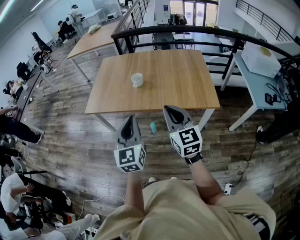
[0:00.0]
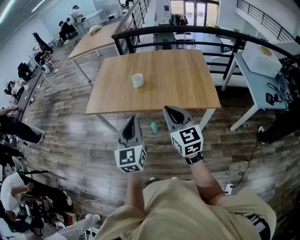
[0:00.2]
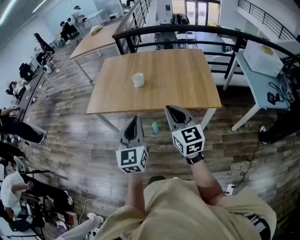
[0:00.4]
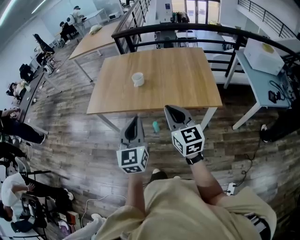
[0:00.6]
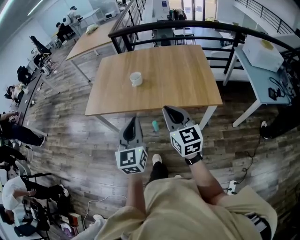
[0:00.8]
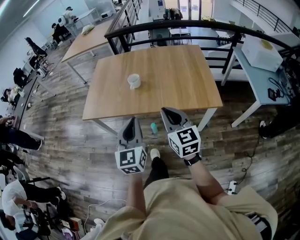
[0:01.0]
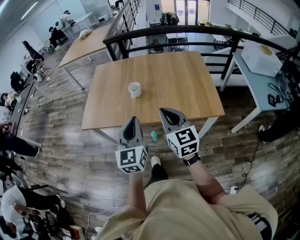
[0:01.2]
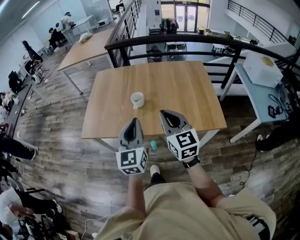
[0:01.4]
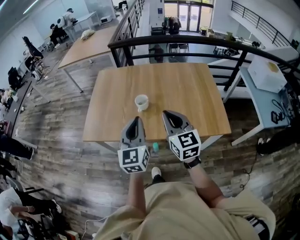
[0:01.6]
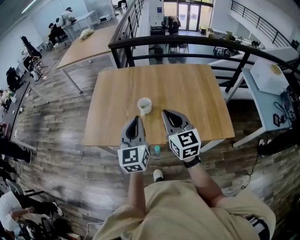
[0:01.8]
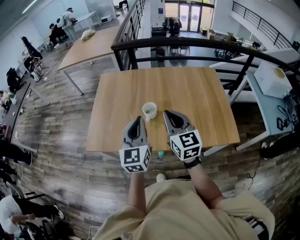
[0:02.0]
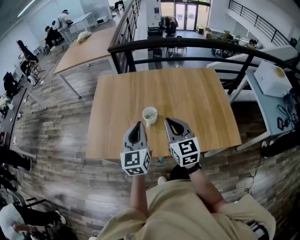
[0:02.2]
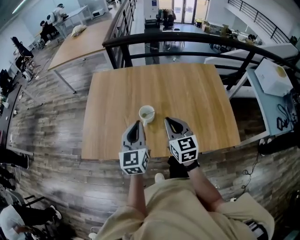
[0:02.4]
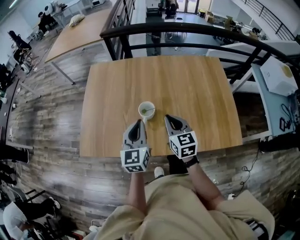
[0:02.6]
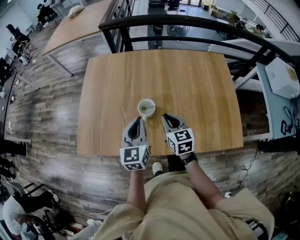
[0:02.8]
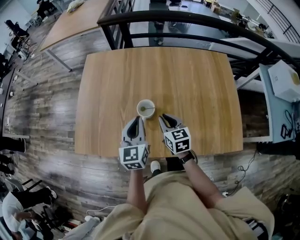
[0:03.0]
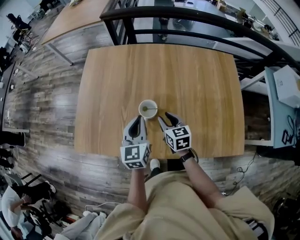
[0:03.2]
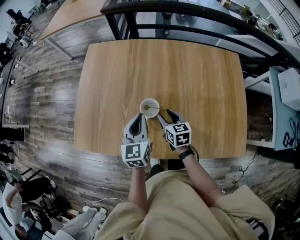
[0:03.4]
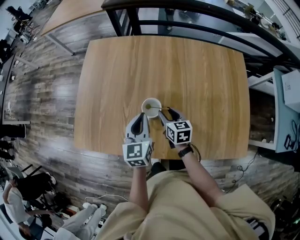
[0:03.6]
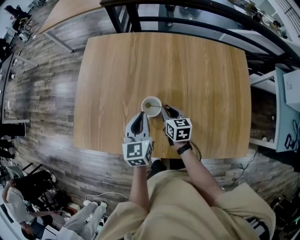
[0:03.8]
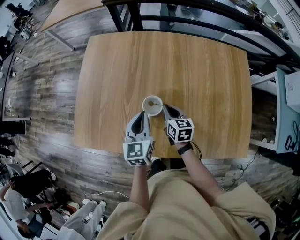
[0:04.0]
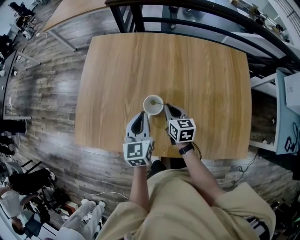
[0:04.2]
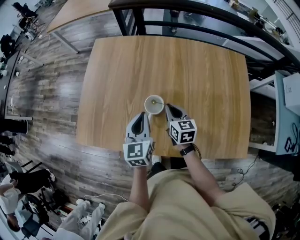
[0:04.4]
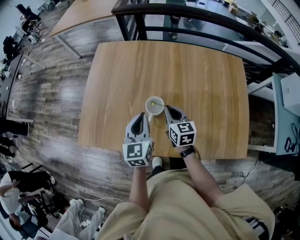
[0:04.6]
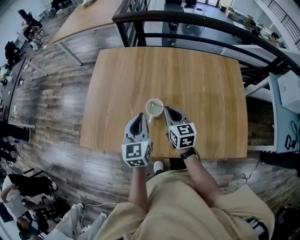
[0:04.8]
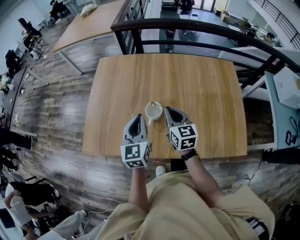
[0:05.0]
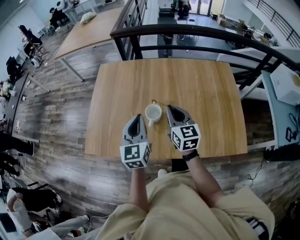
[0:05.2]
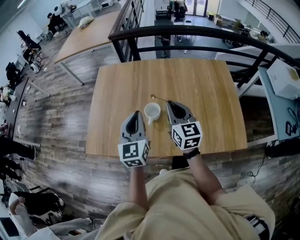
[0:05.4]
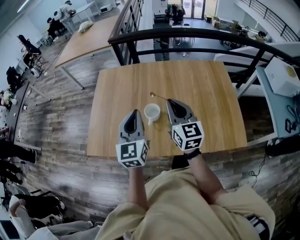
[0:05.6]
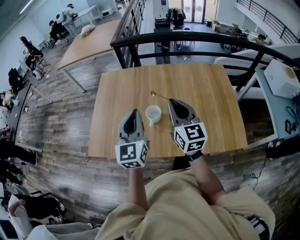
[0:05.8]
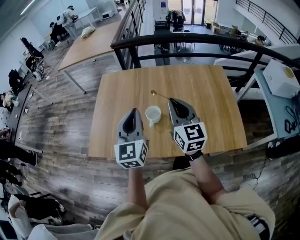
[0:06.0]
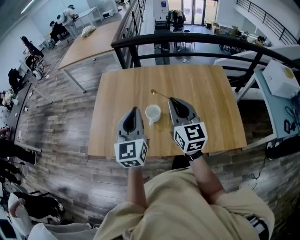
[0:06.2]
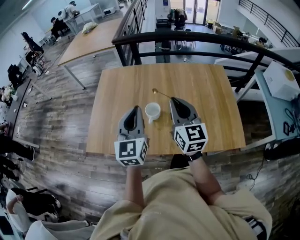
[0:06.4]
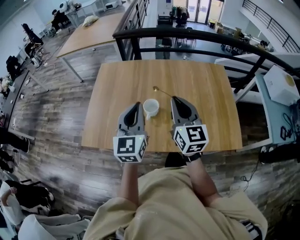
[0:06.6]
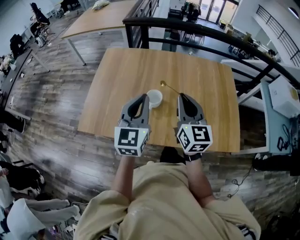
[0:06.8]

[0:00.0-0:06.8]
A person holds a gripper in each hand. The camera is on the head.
0:00.0 to 0:01.4: The grippers both shift forward by some 20 cm.
0:01.4 to 0:02.8: Both grippers move forward and downward, approximately 35 cm. The right gripper rotates some 20 degrees.
0:02.8 to 0:04.0: The two grippers go approximately 15 cm downward and forward. The right gripper opens, then closes once more.
0:04.0 to 0:05.4: The grippers both shift upward and backward by about 25 cm. The right gripper changes its angle by roughly 30 degrees.
0:05.4 to 0:06.8: The right gripper shifts approximately 5 cm upward and backward. Meanwhile the left gripper shifts by approximately 5 cm.

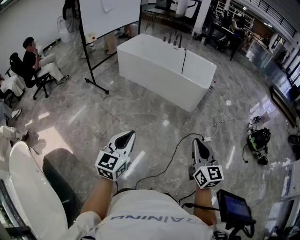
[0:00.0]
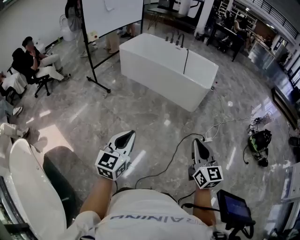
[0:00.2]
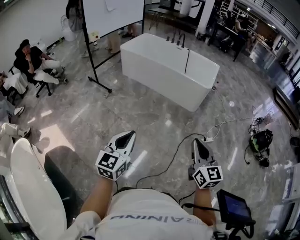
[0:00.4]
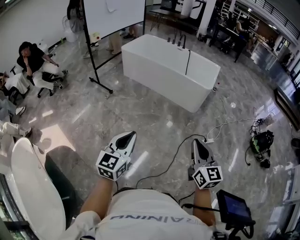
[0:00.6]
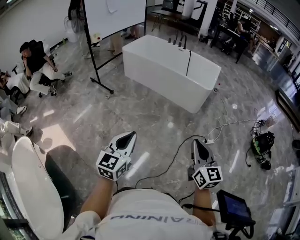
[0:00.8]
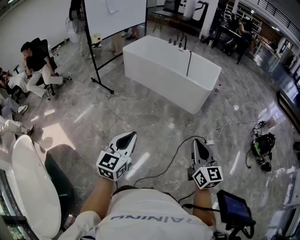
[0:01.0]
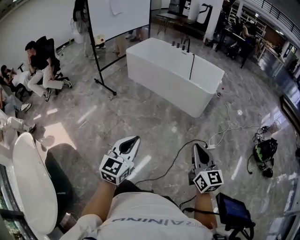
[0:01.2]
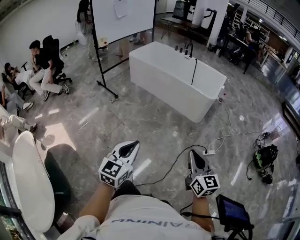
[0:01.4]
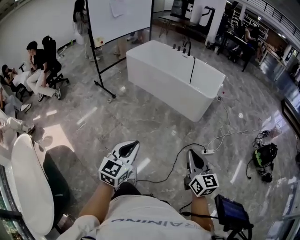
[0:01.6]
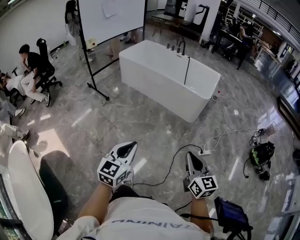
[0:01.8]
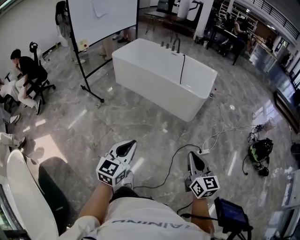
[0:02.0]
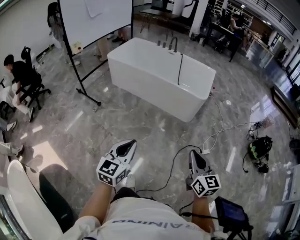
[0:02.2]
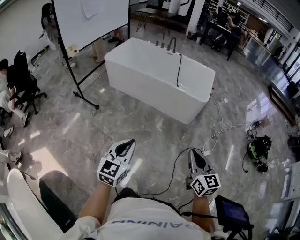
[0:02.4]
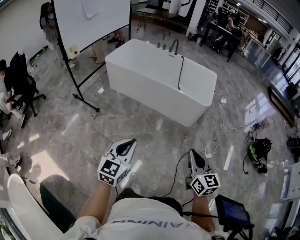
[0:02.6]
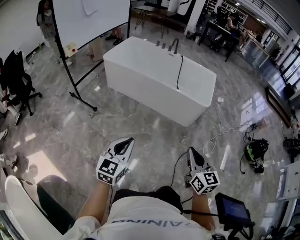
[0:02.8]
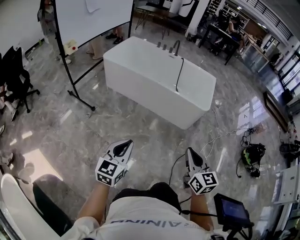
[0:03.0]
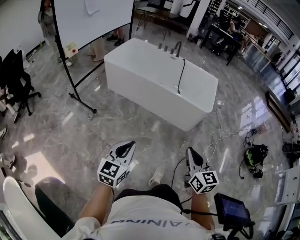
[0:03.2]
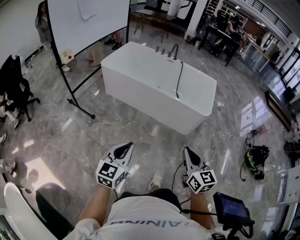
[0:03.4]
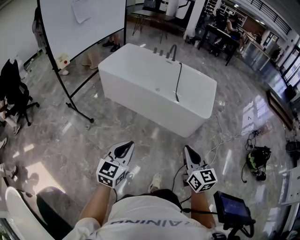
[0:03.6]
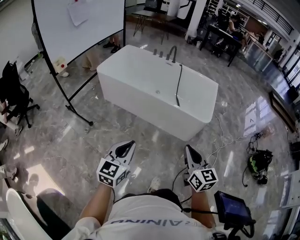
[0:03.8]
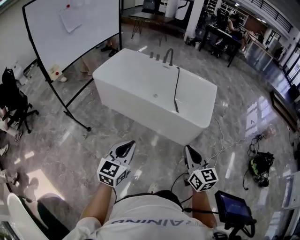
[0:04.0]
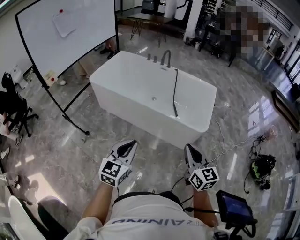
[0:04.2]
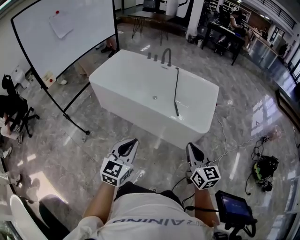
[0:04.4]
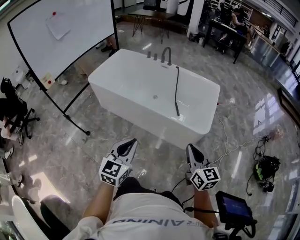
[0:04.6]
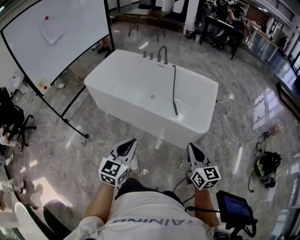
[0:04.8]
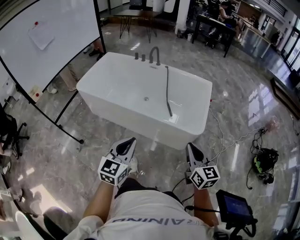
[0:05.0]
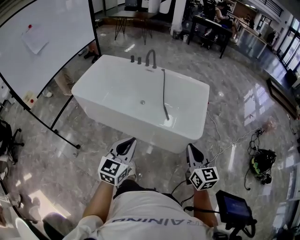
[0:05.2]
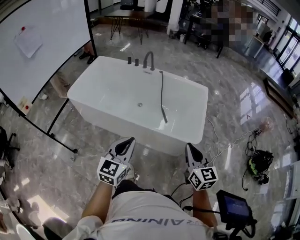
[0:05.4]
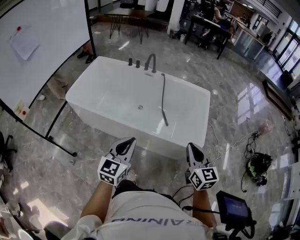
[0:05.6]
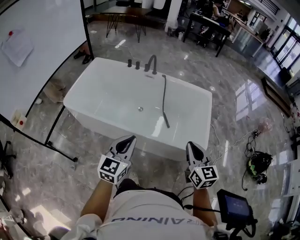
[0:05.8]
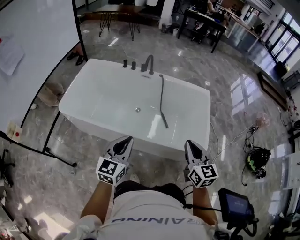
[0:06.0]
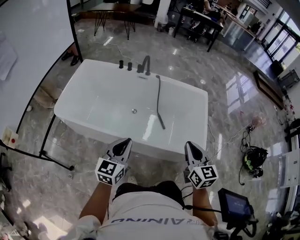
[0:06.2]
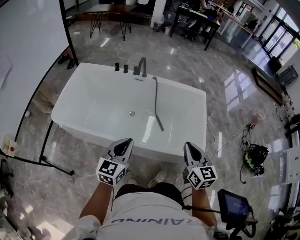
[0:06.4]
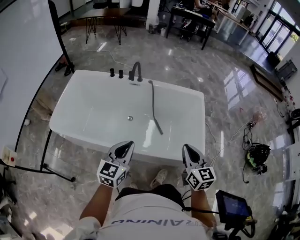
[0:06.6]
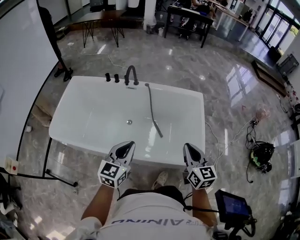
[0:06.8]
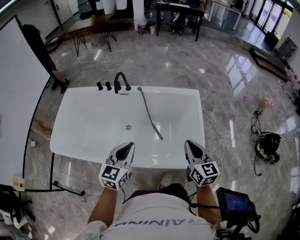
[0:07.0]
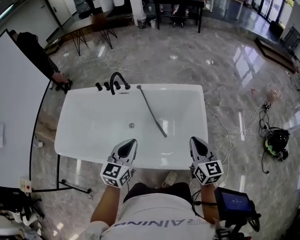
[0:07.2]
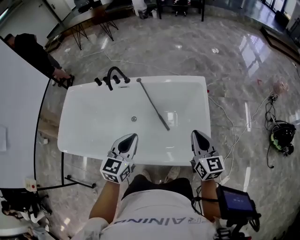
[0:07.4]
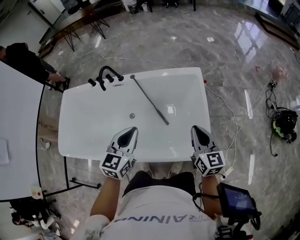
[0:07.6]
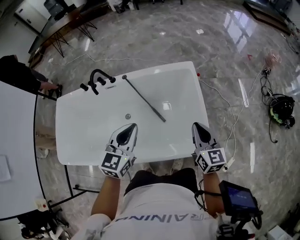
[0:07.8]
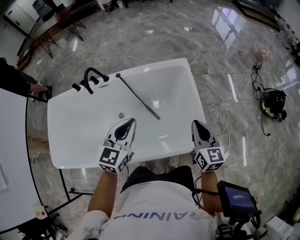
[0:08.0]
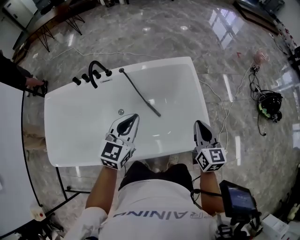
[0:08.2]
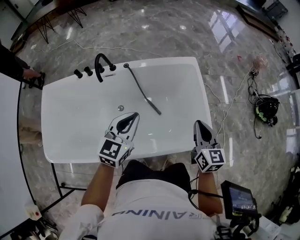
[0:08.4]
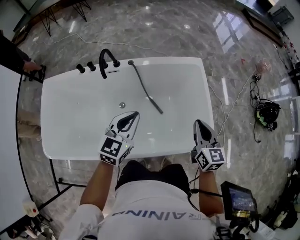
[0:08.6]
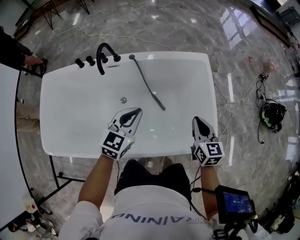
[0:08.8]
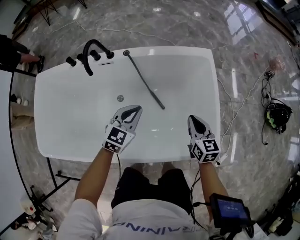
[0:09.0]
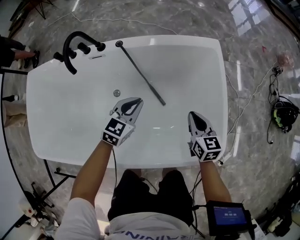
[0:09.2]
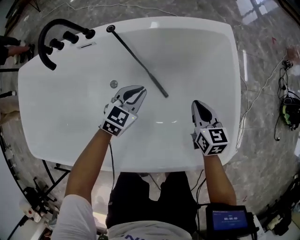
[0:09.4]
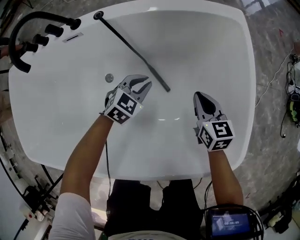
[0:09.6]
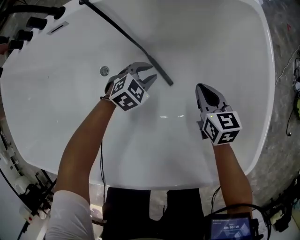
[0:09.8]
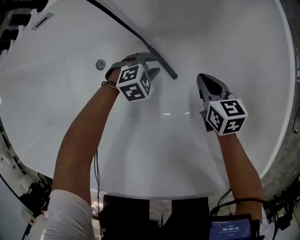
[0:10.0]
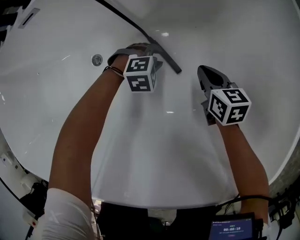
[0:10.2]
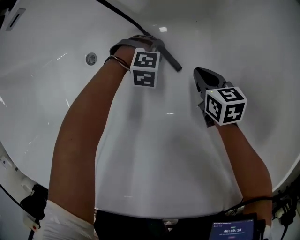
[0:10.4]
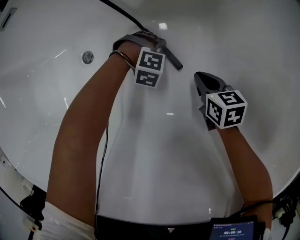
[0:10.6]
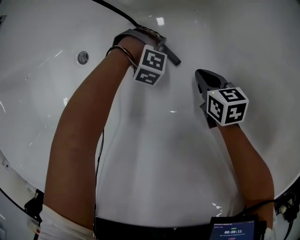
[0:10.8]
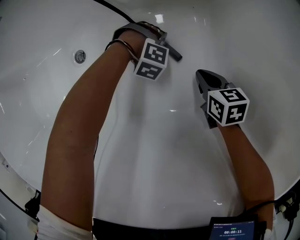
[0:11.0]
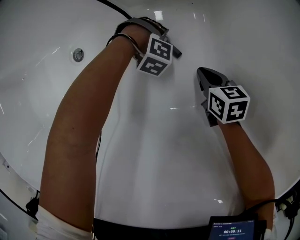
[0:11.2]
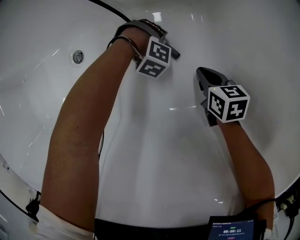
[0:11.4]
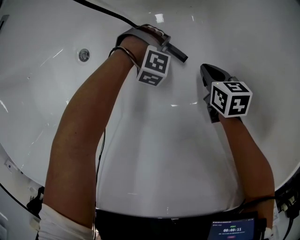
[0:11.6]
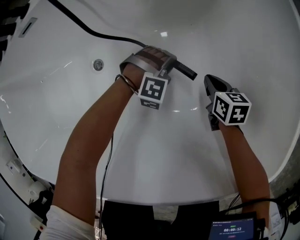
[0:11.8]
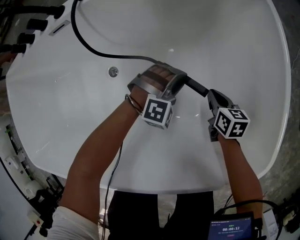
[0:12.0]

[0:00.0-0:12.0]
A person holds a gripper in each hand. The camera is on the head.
0:00.0 to 0:01.6: The two grippers go some 10 cm to the right.
0:01.6 to 0:03.0: The grippers both shift forward and to the left by about 40 cm.
0:03.0 to 0:04.4: The grippers both shift forward and to the right by roughly 40 cm.
0:04.4 to 0:06.0: Both grippers travel together forward, about 40 cm.
0:06.0 to 0:07.6: The grippers both shift forward and to the right by about 40 cm.
0:07.6 to 0:09.0: The right gripper moves downward and to the left, some 25 cm. The left gripper is displaced downward, to the left and forward by roughly 30 cm.
0:09.0 to 0:10.4: The two grippers go roughly 60 cm downward. The left gripper tips its fingers downward by roughly 40 degrees, and opens its fingers; the right gripper swivels approximately 20 degrees.
0:10.4 to 0:12.0: The left gripper moves up and down over some 25 cm, changing direction 3 times, and rotates some 30 degrees, while the right gripper moves upward, about 10 cm.

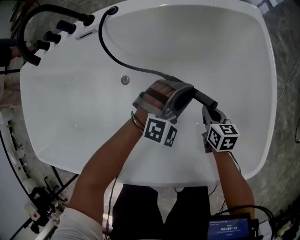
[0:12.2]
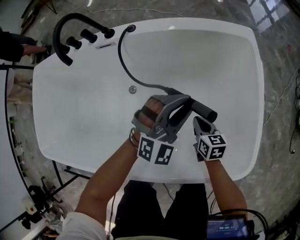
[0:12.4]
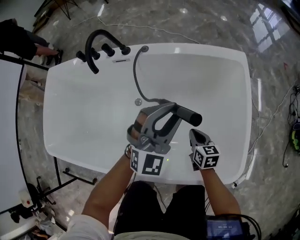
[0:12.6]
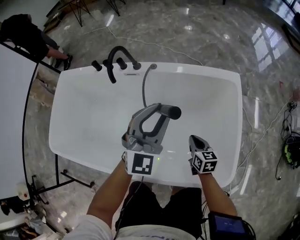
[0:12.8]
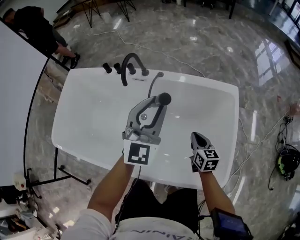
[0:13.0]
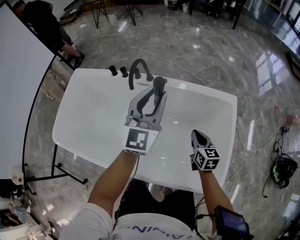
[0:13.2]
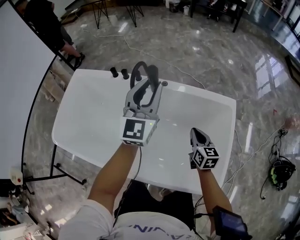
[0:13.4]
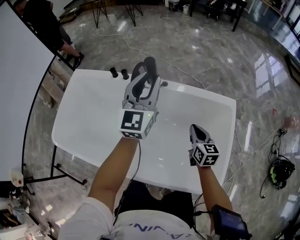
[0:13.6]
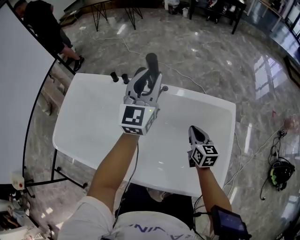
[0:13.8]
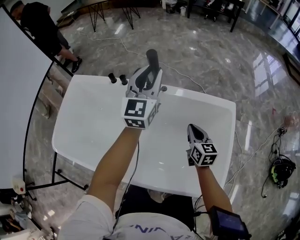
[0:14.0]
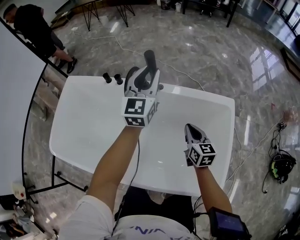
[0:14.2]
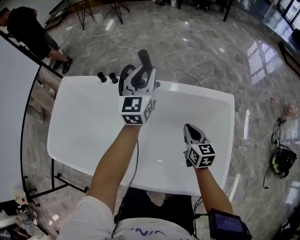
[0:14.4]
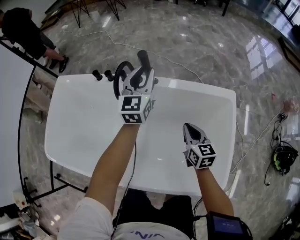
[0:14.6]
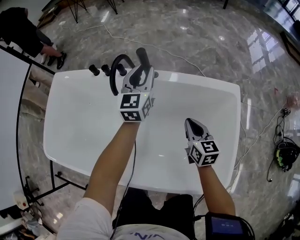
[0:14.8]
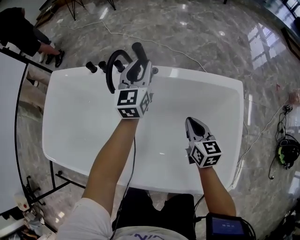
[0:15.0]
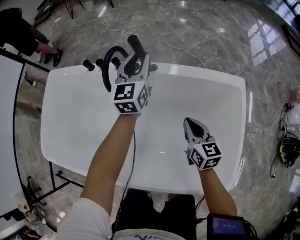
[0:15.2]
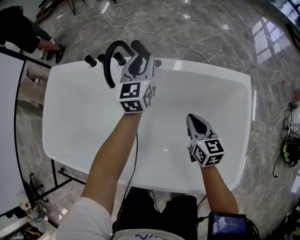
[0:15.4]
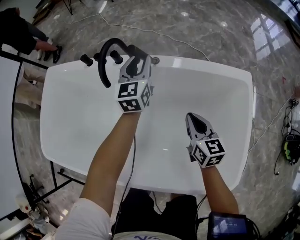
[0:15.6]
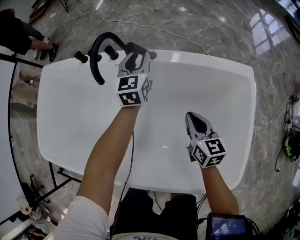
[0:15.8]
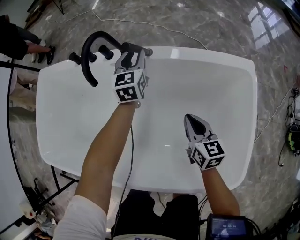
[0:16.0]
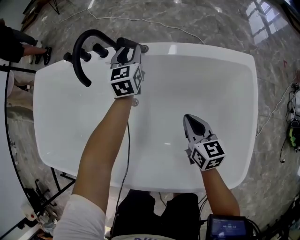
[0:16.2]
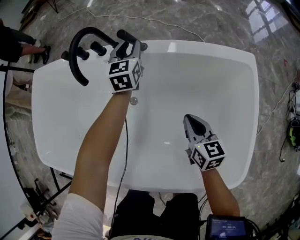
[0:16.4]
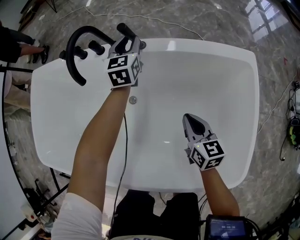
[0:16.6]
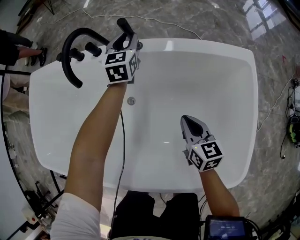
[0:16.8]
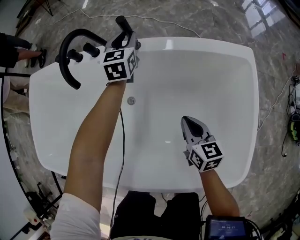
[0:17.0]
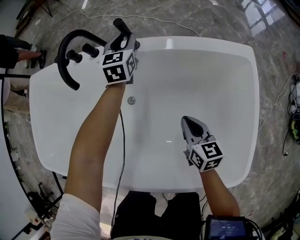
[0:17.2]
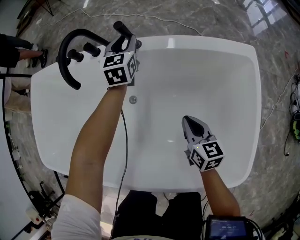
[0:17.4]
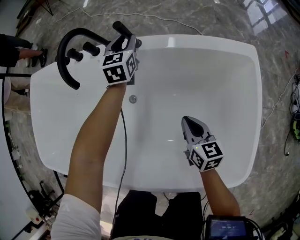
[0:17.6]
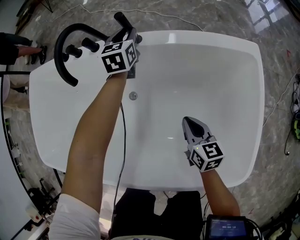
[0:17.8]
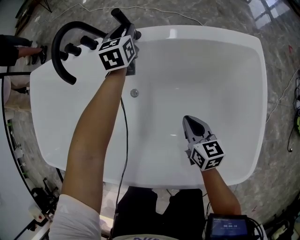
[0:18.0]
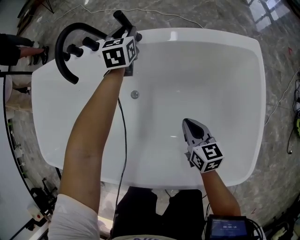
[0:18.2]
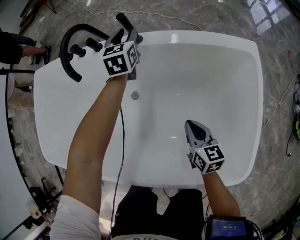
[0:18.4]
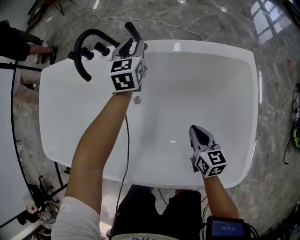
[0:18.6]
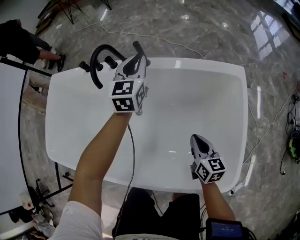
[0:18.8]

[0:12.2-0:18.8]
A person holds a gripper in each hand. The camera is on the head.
0:12.2 to 0:13.8: The left gripper shifts some 60 cm upward and to the left, and angles its fingers upward, by roughly 40 degrees. The right gripper travels upward by roughly 40 cm, and swivels some 30 degrees.
0:13.8 to 0:15.4: The left gripper moves downward and forward, about 30 cm; the right gripper is displaced downward by approximately 10 cm.
0:15.4 to 0:17.2: The left gripper heads downward and forward, covering about 15 cm. Meanwhile the right gripper heads downward, covering roughly 10 cm.
0:17.2 to 0:18.8: The left gripper is displaced upward and backward by roughly 20 cm, while the right gripper shifts approximately 10 cm backward, upward and to the right.
